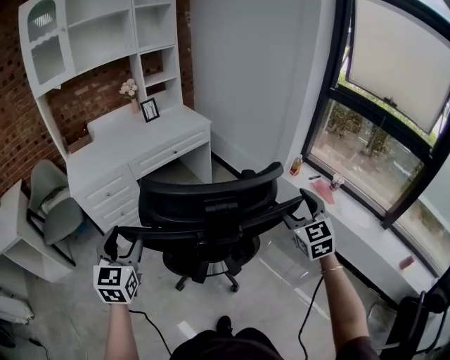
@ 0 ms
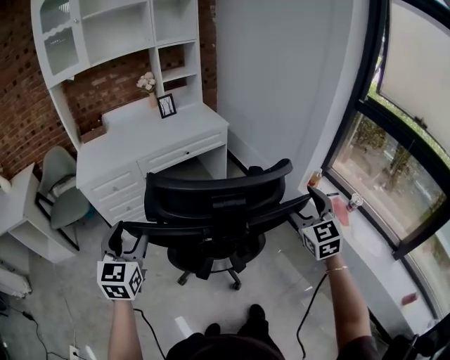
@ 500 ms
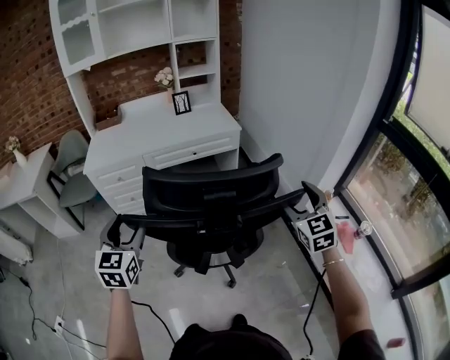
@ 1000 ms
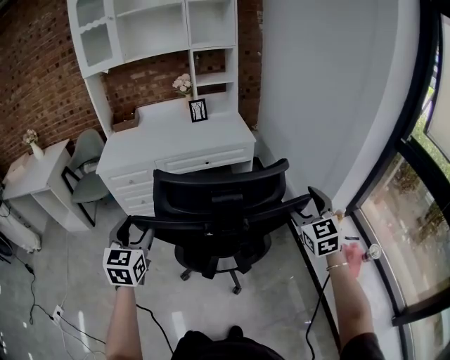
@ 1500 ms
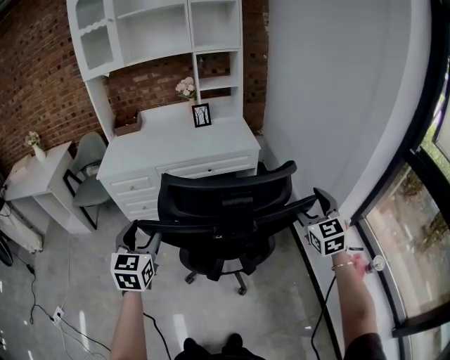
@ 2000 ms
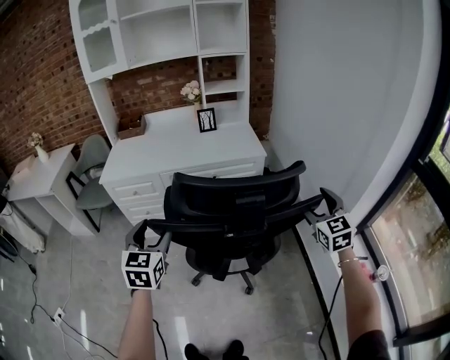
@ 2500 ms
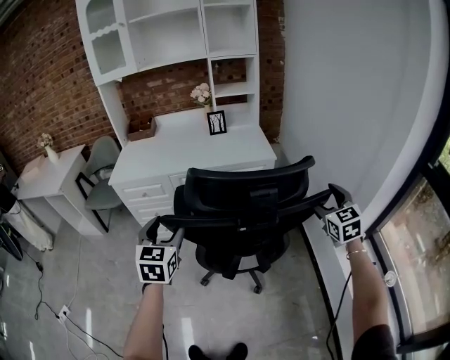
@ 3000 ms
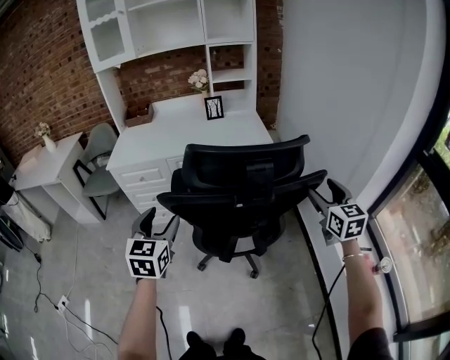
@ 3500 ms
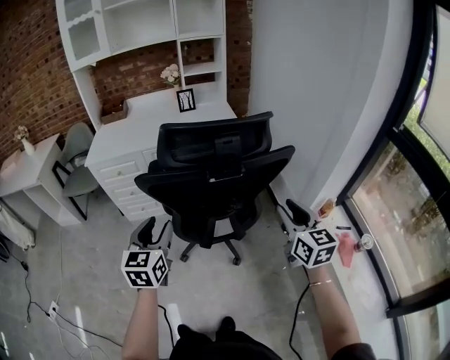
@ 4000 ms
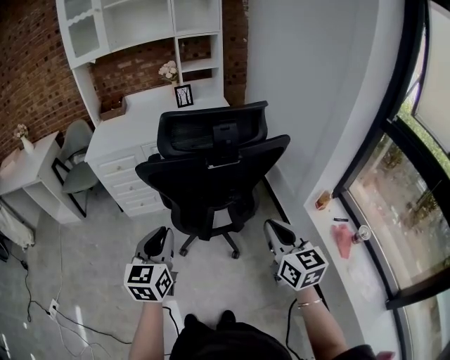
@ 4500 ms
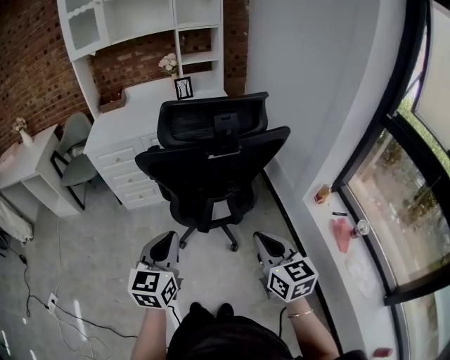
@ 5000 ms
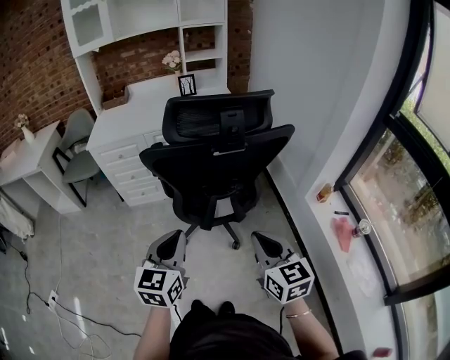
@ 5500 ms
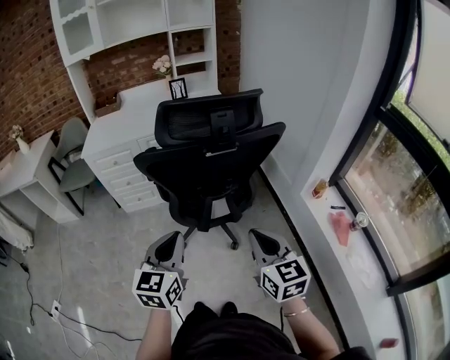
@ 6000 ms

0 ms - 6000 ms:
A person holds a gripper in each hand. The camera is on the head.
0 ms - 2000 ms: The left gripper shifts by some 25 cm, and rotates about 30 degrees. The right gripper moves about 35 cm, and changes its angle by about 30 degrees.
2000 ms - 4000 ms: The right gripper heads backward, covering about 10 cm, rotates approximately 30 degrees, and closes, while the left gripper shifts roughly 10 cm to the right and backward.
4000 ms - 6000 ms: The right gripper shifts approximately 20 cm backward and to the left, and closes its fingers. The left gripper moves backward, about 10 cm, and closes up.

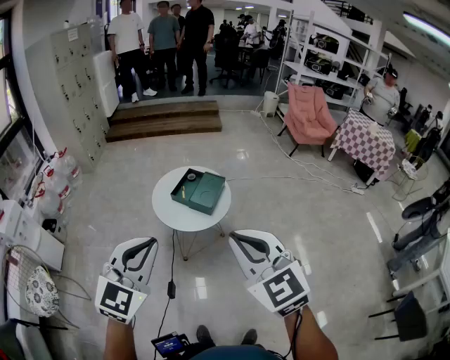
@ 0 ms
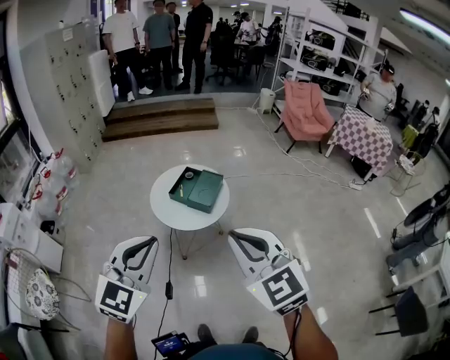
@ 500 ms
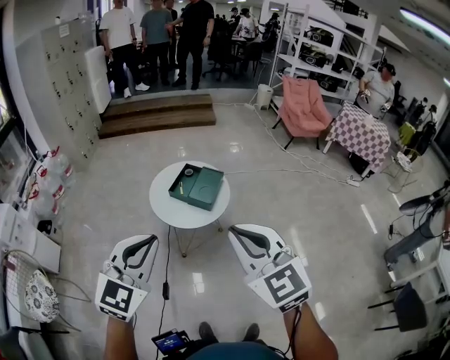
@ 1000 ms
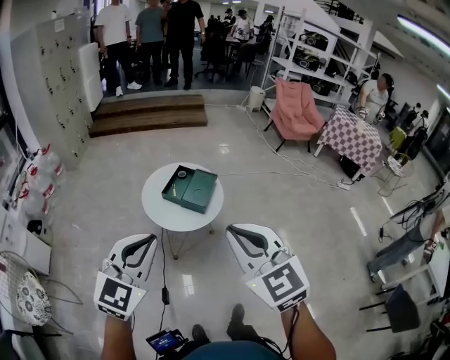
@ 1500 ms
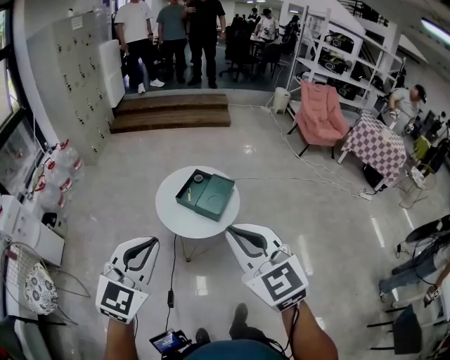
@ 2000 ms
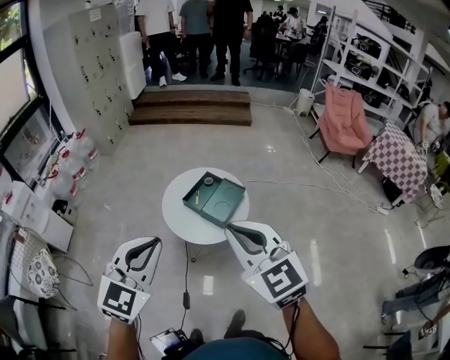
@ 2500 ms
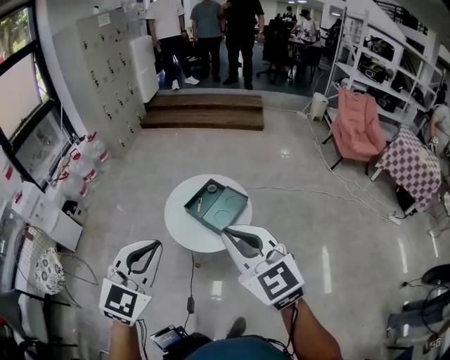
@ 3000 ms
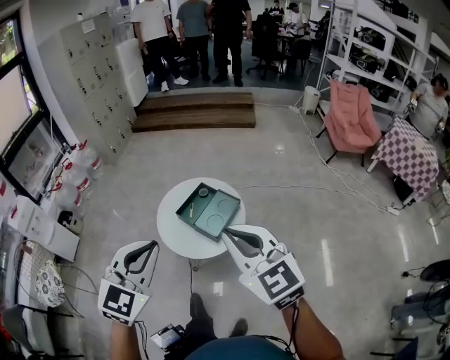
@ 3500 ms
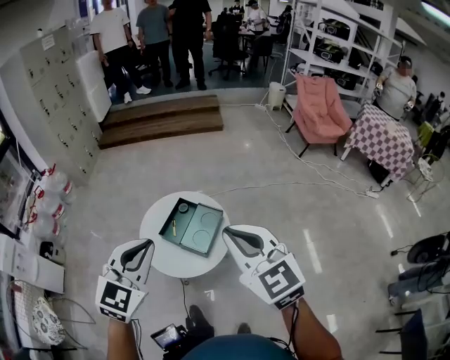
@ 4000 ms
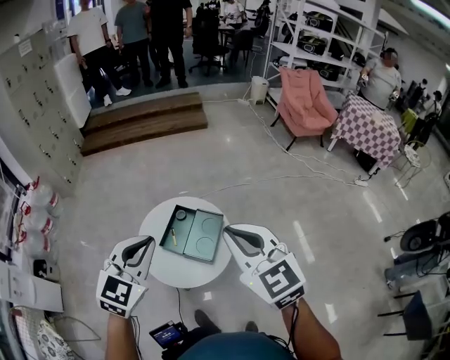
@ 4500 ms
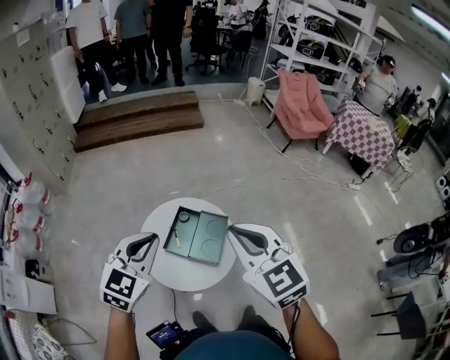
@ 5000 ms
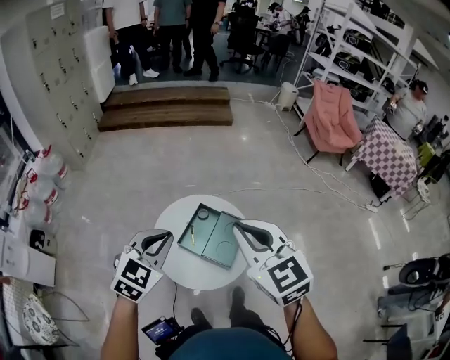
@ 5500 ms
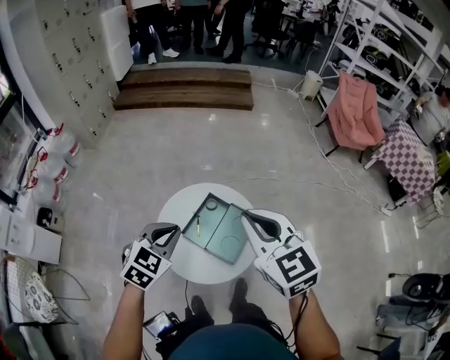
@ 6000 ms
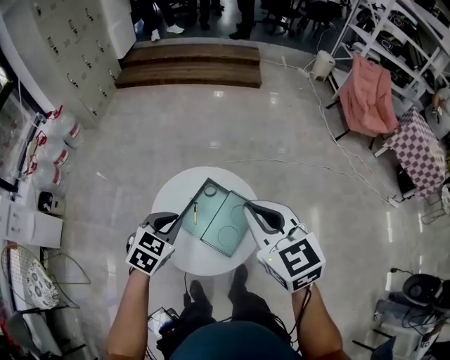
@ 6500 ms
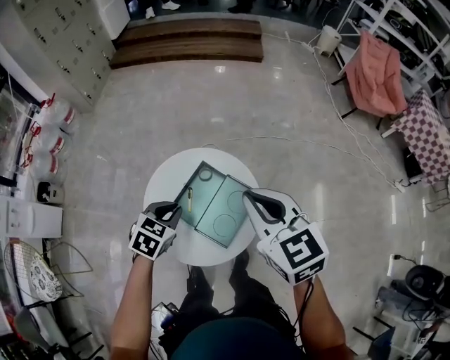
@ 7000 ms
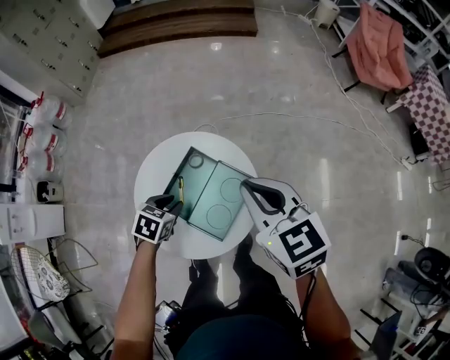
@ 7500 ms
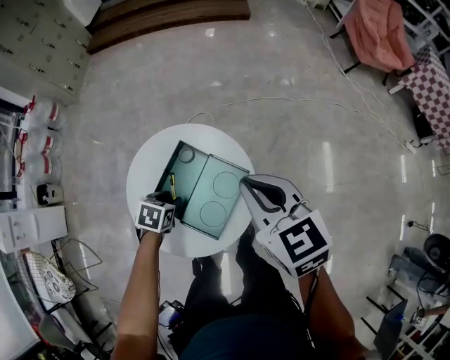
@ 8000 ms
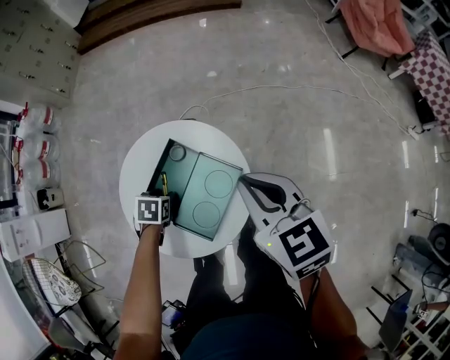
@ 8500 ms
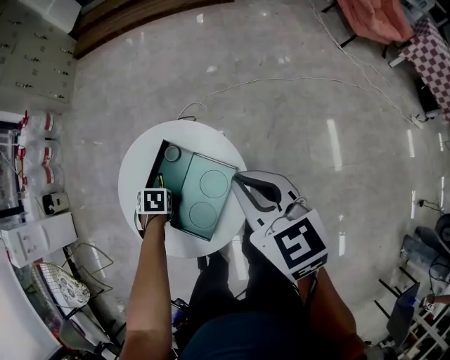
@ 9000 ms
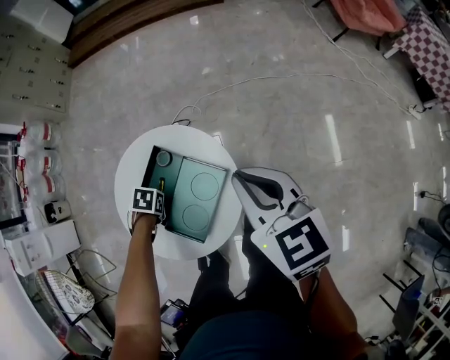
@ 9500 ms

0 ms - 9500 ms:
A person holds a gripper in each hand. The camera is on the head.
0 ms - 2000 ms: The two grippers go roughly 15 cm forward.
2000 ms - 4000 ms: The two grippers go approximately 35 cm forward and to the right.
4000 ms - 5500 ms: The left gripper moves forward, to the left and downward, some 30 cm, while the right gripper shifts roughly 25 cm to the left and forward.
5500 ms - 7500 ms: The right gripper travels downward, forward and to the right by approximately 40 cm, and swivels roughly 20 degrees. Meanwhile the left gripper goes approximately 50 cm downward and forward, and tilts its fingers roughly 30 degrees downward.
7500 ms - 9500 ms: The left gripper is displaced downward by some 15 cm, changes its angle by about 30 degrees, and opens and closes again; the right gripper moves roughly 20 cm.

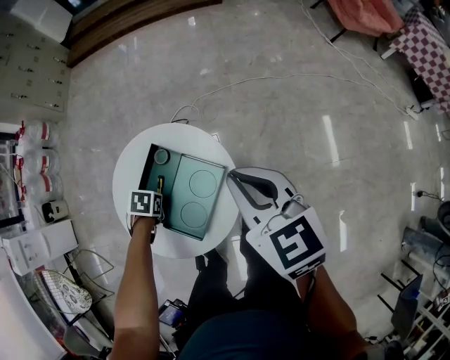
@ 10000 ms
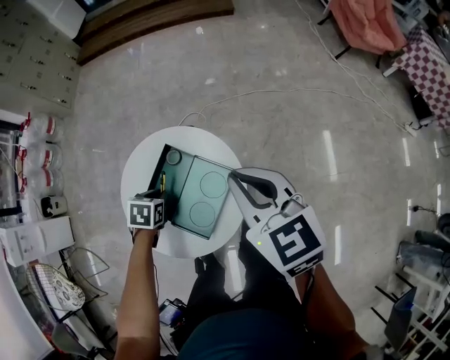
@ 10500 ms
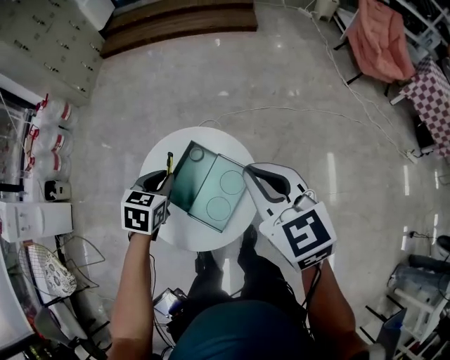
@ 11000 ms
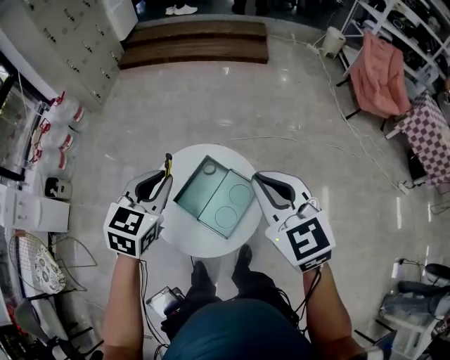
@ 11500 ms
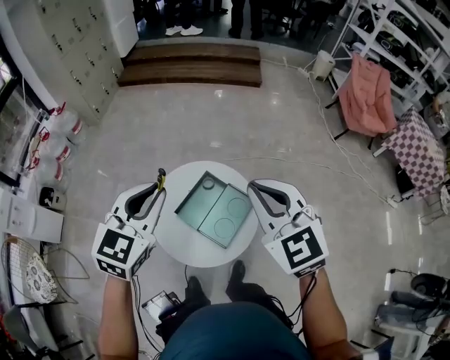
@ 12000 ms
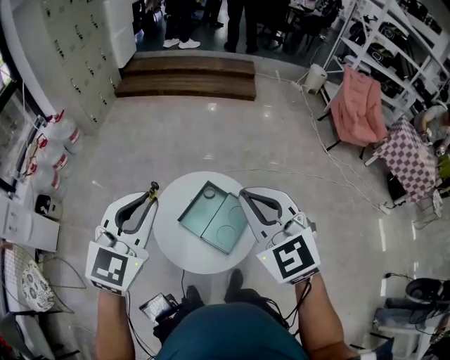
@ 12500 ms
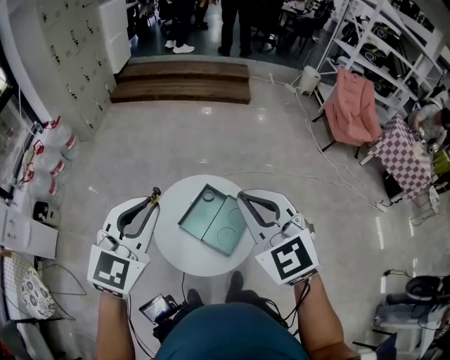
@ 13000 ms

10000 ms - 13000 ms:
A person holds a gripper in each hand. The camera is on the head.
10000 ms - 11500 ms: The right gripper heads upward, covering some 25 cm, and changes its angle by roughly 20 degrees; the left gripper is displaced upward by roughly 50 cm, and angles its fingers upward, by about 60 degrees.
11500 ms - 13000 ms: The left gripper is displaced upward, to the left and backward by some 25 cm, and rotates some 20 degrees. Meanwhile the right gripper moves to the left, upward and backward, some 20 cm.

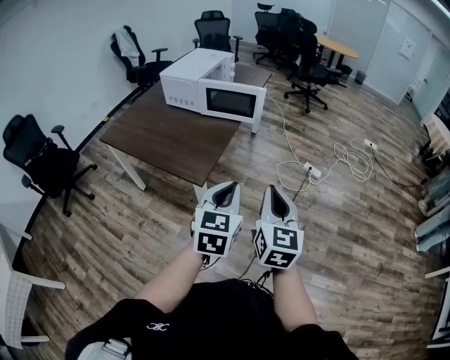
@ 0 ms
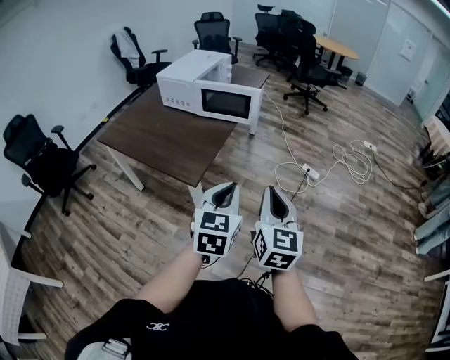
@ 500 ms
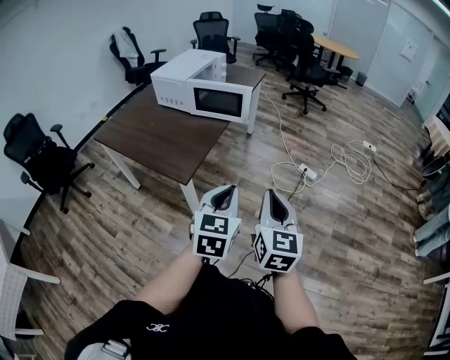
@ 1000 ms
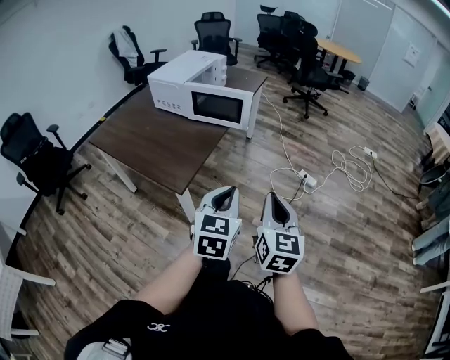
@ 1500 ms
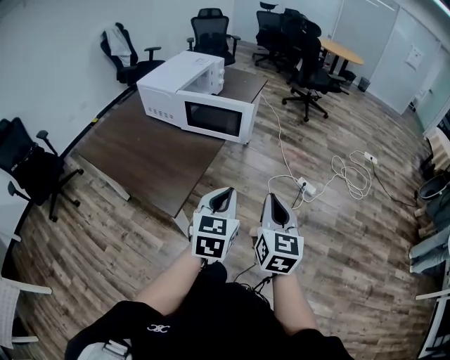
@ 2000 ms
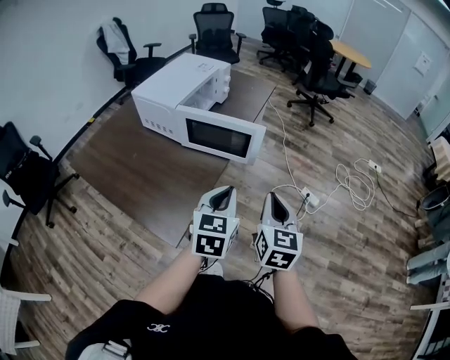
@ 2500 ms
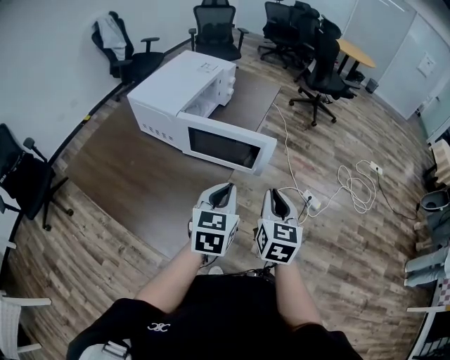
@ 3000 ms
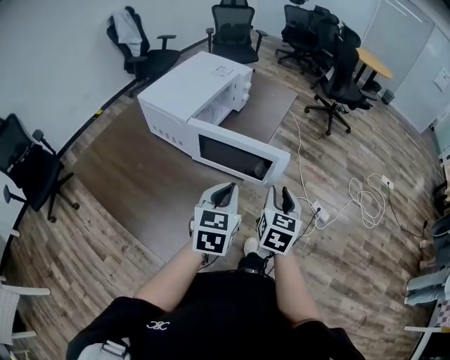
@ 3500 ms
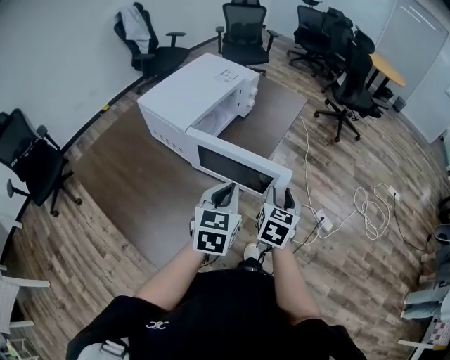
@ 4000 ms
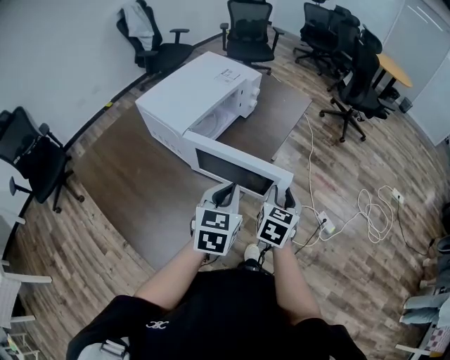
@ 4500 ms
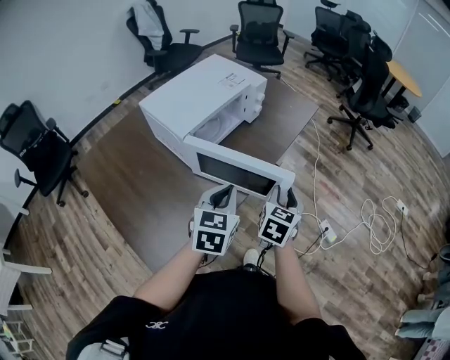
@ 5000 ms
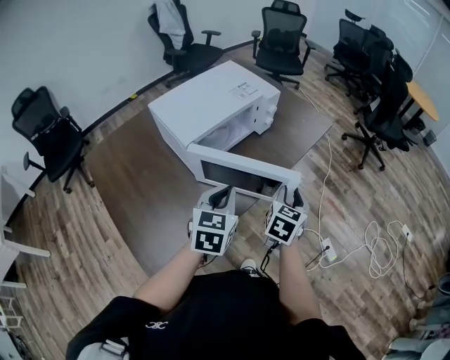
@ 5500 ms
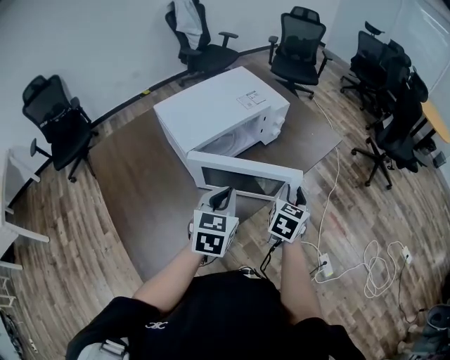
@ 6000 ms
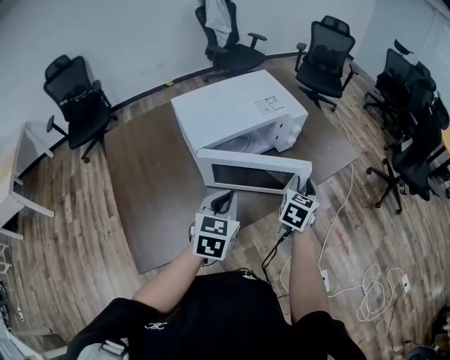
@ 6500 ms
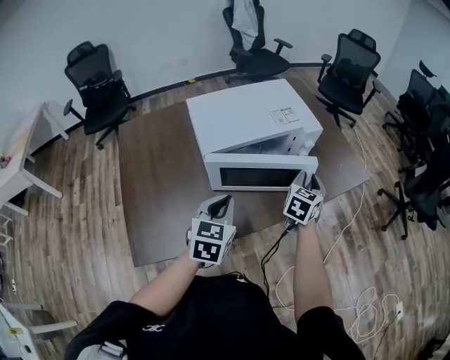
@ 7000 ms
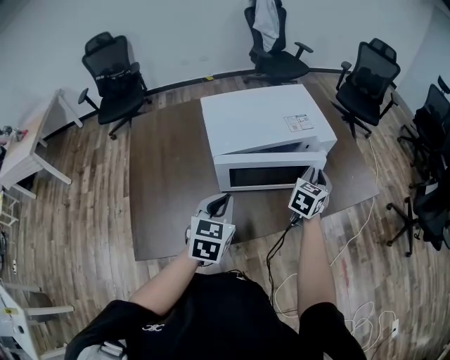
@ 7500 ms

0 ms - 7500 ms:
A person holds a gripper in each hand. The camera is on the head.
0 ms - 2000 ms: The two grippers go some 20 cm forward.
2000 ms - 4000 ms: The right gripper heads forward, covering approximately 40 cm, and opens, while the left gripper moves forward and to the left, roughly 35 cm.
4000 ms - 5500 ms: The right gripper heads forward, covering some 15 cm. The left gripper heads forward, covering approximately 10 cm.
5500 ms - 7500 ms: The right gripper travels forward by some 25 cm, and swivels about 20 degrees; the left gripper heads forward, covering some 5 cm, and swivels approximately 30 degrees.
